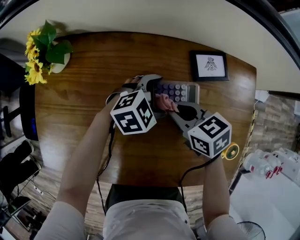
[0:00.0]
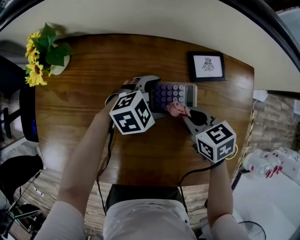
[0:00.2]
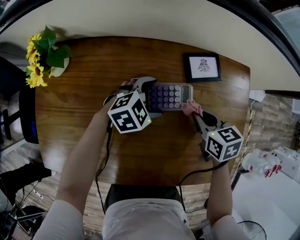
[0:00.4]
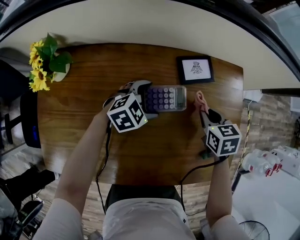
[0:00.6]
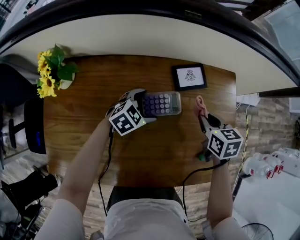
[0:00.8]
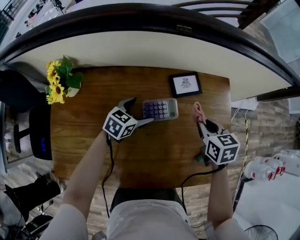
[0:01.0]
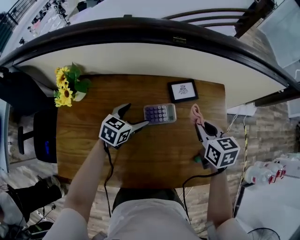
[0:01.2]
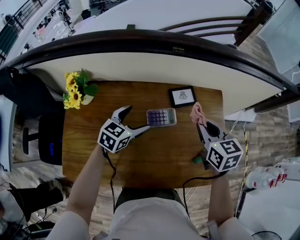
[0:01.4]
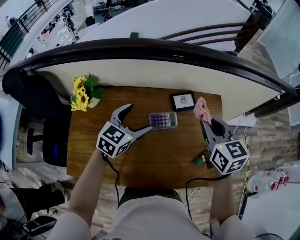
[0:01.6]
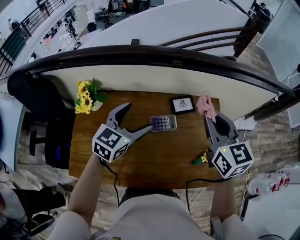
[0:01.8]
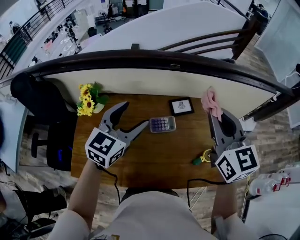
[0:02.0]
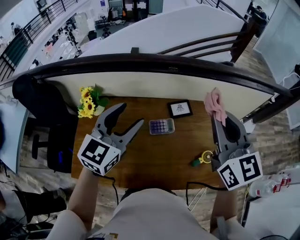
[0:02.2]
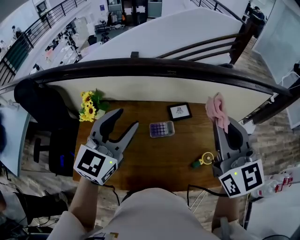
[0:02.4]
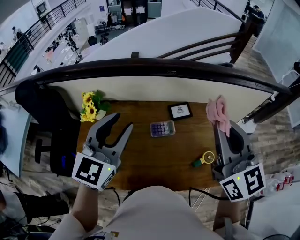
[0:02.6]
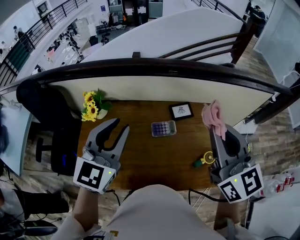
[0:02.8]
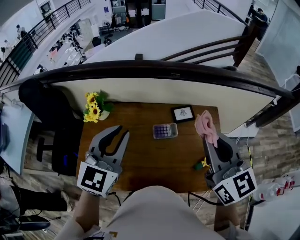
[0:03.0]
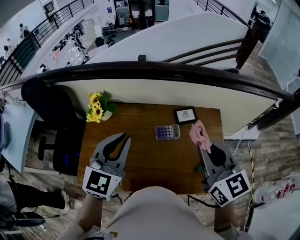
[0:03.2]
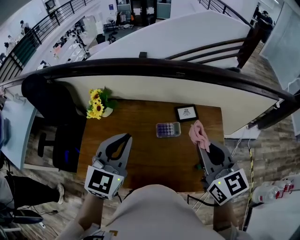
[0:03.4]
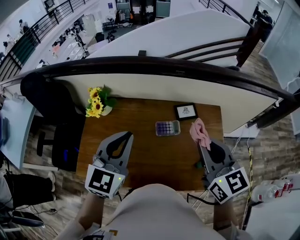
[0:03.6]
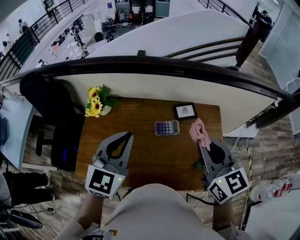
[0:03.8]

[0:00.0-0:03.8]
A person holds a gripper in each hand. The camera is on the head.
0:00.0 to 0:01.2: The right gripper shifts roughly 15 cm upward, and changes its angle by some 30 degrees, while the left gripper is displaced upward by about 10 cm, and changes its angle by some 40 degrees.
0:01.2 to 0:02.6: Both grippers travel together upward, about 40 cm. The left gripper tilts its fingers some 30 degrees upward, and closes its fingers; the right gripper tips its fingers upward by some 40 degrees.
0:02.6 to 0:03.8: The right gripper is displaced downward by approximately 10 cm. The left gripper moves about 5 cm.

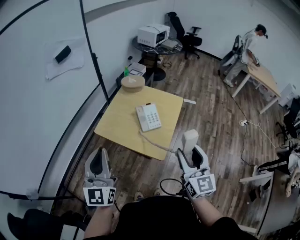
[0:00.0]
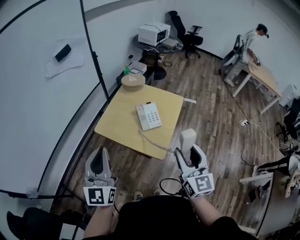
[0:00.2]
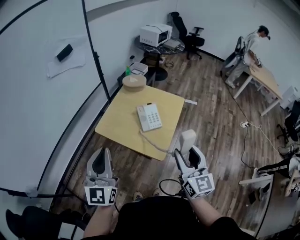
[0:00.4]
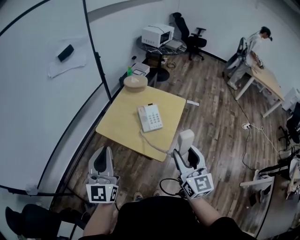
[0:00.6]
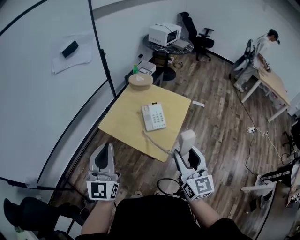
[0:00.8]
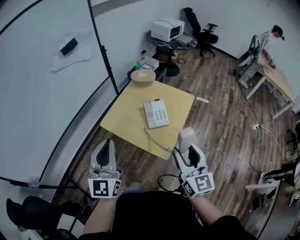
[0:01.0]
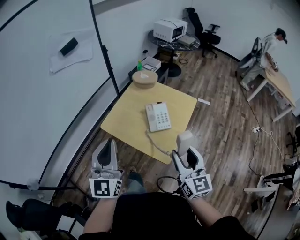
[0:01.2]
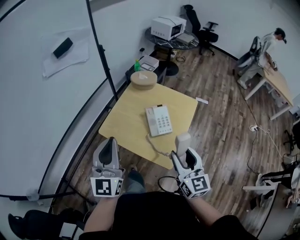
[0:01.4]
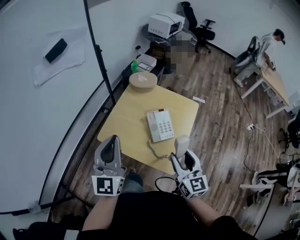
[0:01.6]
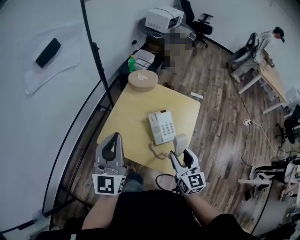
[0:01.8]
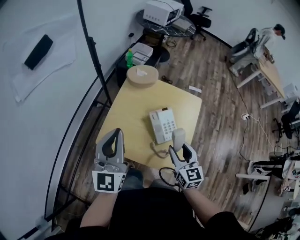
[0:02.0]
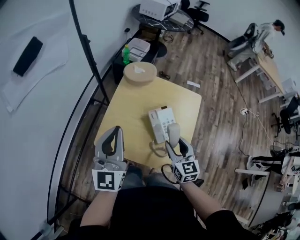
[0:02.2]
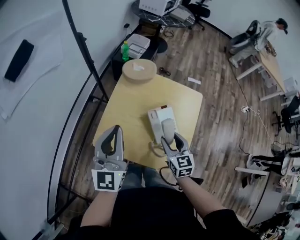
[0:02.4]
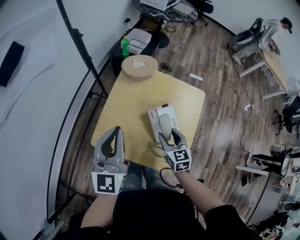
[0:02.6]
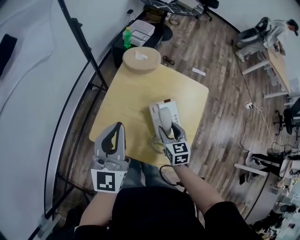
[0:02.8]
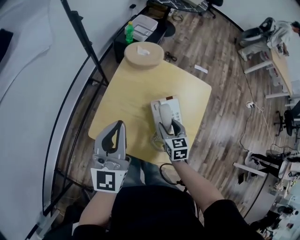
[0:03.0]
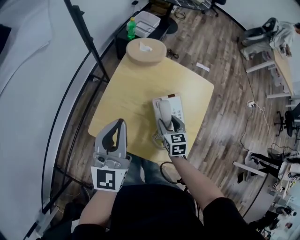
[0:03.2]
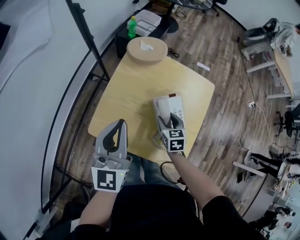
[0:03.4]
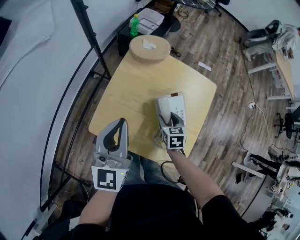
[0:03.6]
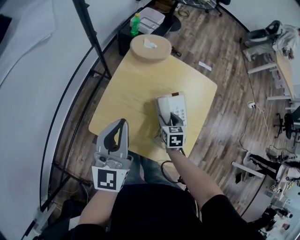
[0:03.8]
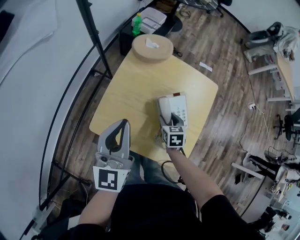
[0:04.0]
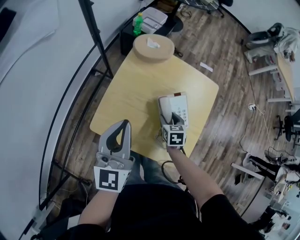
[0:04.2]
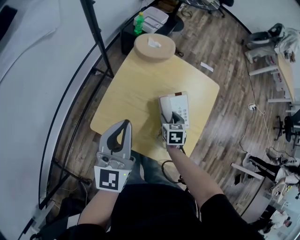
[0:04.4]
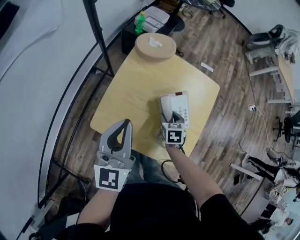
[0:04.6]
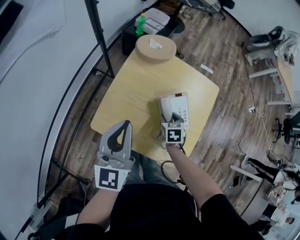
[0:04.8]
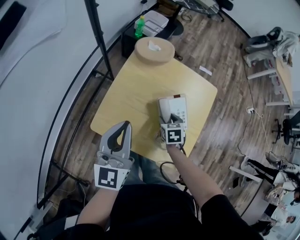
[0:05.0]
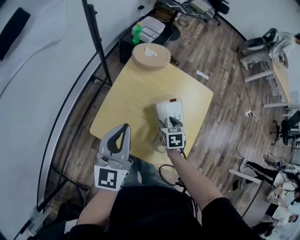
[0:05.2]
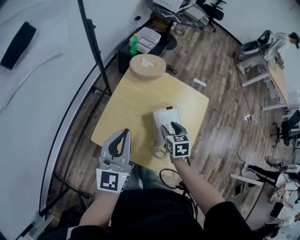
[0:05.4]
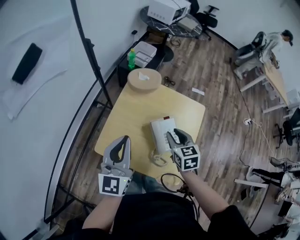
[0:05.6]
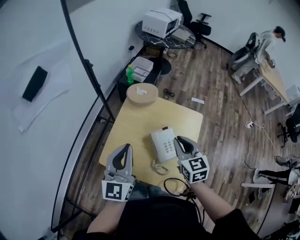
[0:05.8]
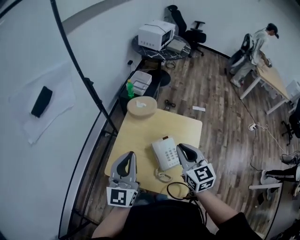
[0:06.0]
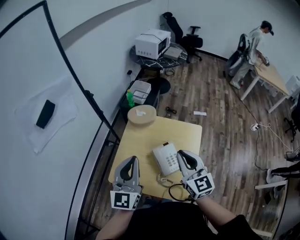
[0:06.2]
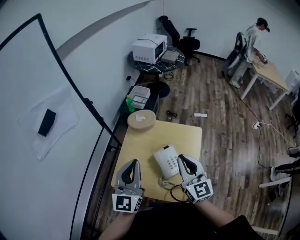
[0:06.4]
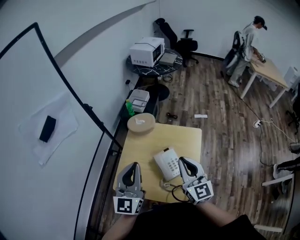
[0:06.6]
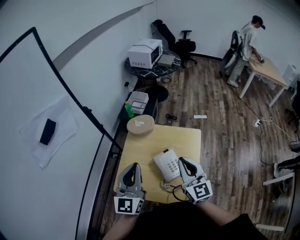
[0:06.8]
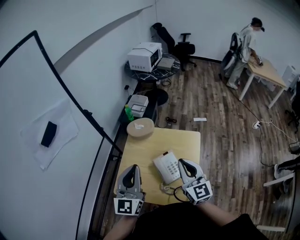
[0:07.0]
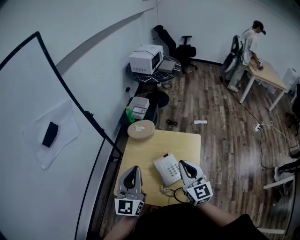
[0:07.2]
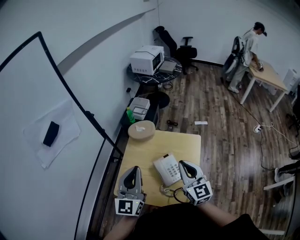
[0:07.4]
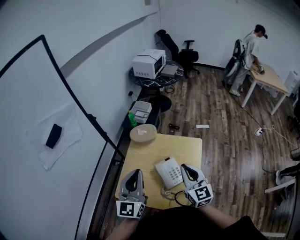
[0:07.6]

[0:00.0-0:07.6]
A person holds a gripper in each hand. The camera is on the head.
0:00.0 to 0:01.6: The right gripper is displaced forward and downward by roughly 20 cm. Meanwhile the left gripper travels forward by approximately 20 cm.
0:01.6 to 0:03.0: The left gripper is displaced forward and downward by approximately 20 cm; the right gripper heads downward and forward, covering some 30 cm, and tips its fingers downward by about 30 degrees.
0:03.0 to 0:04.6: The right gripper heads downward, covering approximately 5 cm.
0:04.6 to 0:06.0: The left gripper travels upward by about 15 cm; the right gripper travels upward by roughly 35 cm, tilts its fingers approximately 40 degrees upward, and closes up.
0:06.0 to 0:07.6: The right gripper ends up about 5 cm from where it was. Meanwhile the left gripper moves some 5 cm.

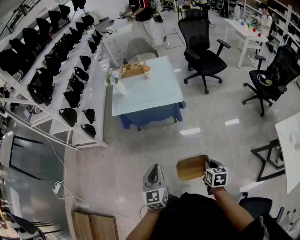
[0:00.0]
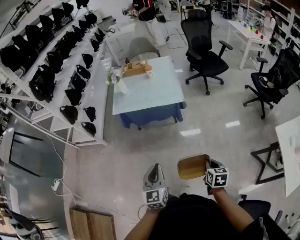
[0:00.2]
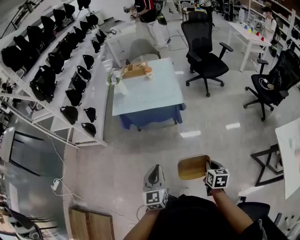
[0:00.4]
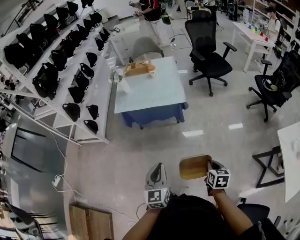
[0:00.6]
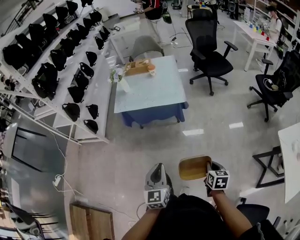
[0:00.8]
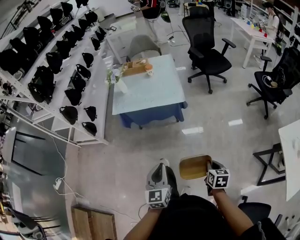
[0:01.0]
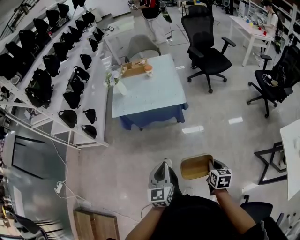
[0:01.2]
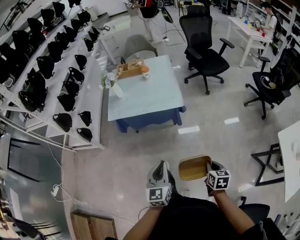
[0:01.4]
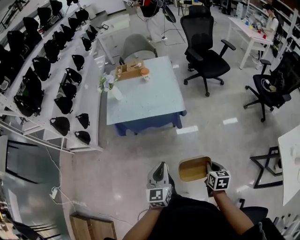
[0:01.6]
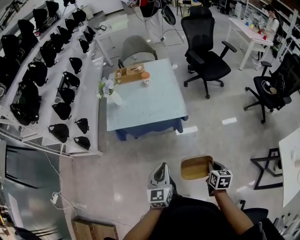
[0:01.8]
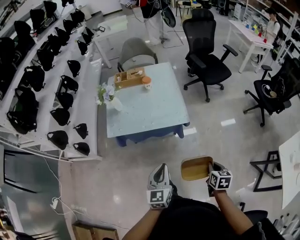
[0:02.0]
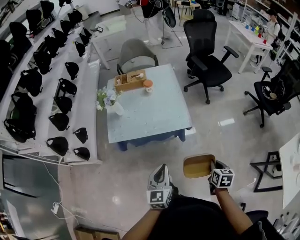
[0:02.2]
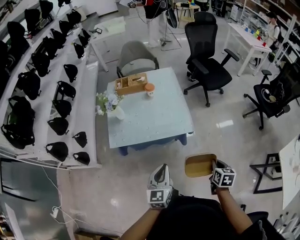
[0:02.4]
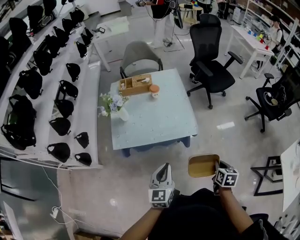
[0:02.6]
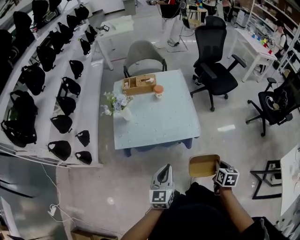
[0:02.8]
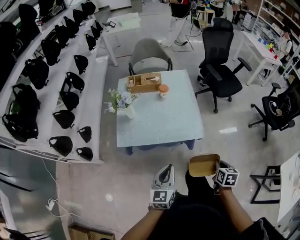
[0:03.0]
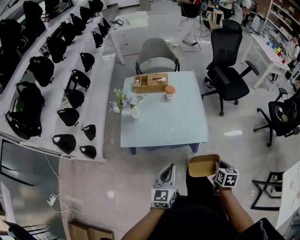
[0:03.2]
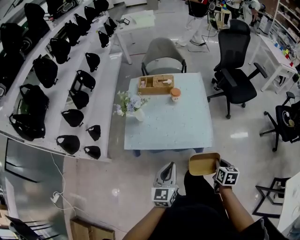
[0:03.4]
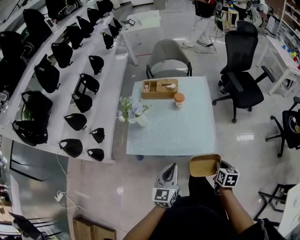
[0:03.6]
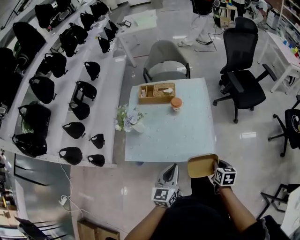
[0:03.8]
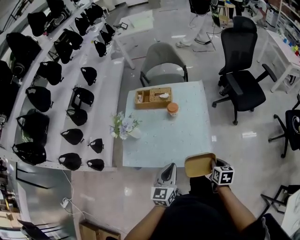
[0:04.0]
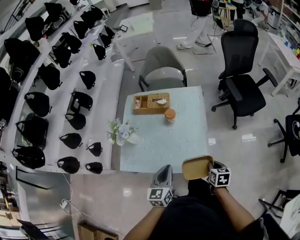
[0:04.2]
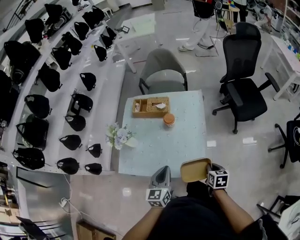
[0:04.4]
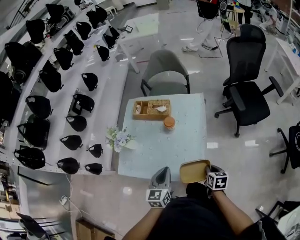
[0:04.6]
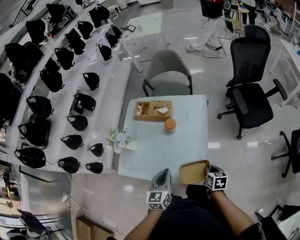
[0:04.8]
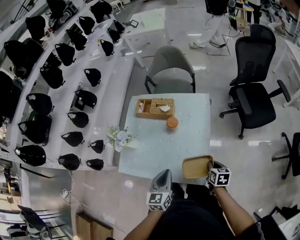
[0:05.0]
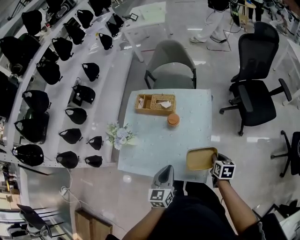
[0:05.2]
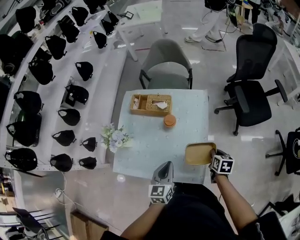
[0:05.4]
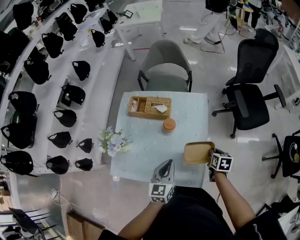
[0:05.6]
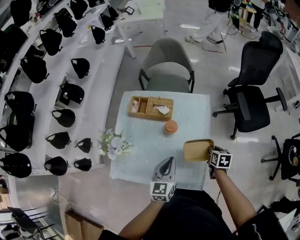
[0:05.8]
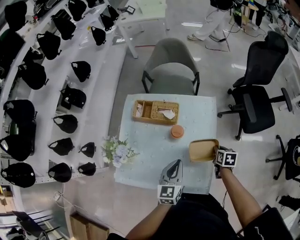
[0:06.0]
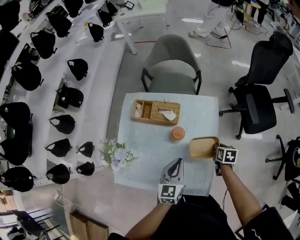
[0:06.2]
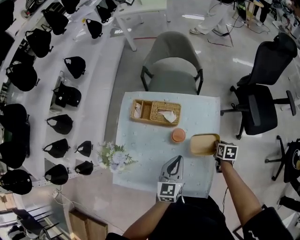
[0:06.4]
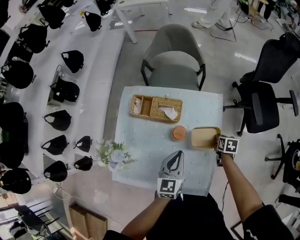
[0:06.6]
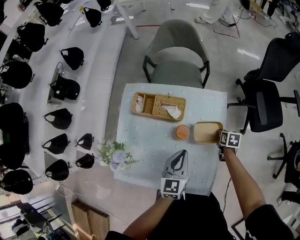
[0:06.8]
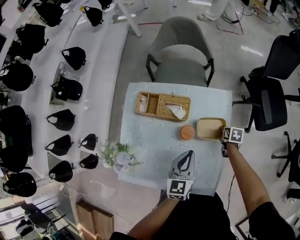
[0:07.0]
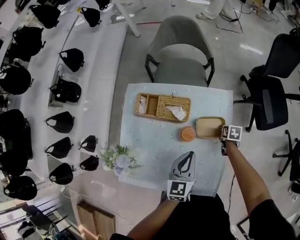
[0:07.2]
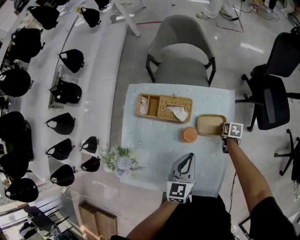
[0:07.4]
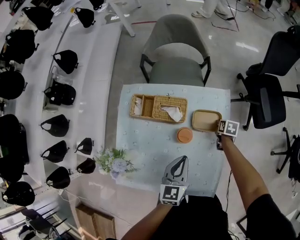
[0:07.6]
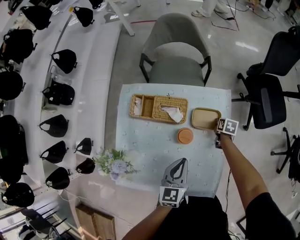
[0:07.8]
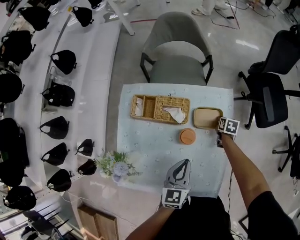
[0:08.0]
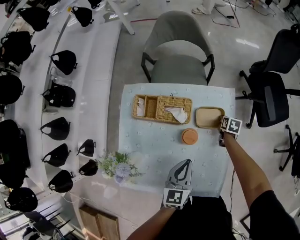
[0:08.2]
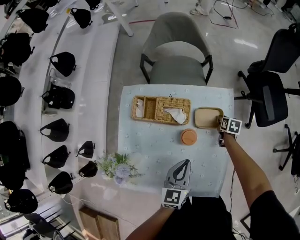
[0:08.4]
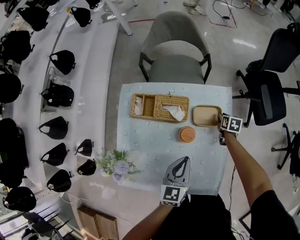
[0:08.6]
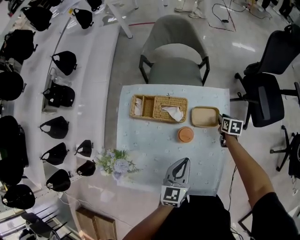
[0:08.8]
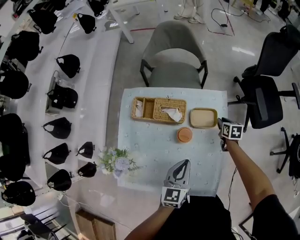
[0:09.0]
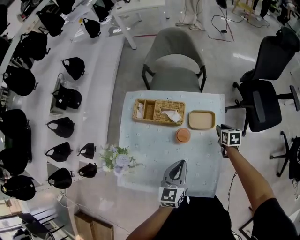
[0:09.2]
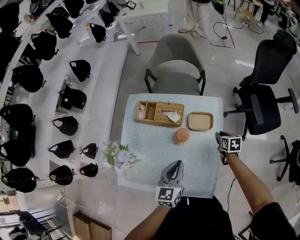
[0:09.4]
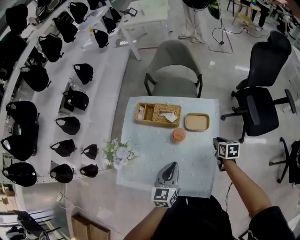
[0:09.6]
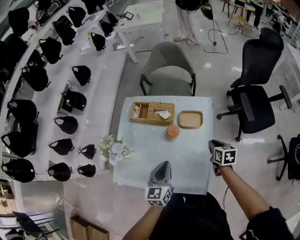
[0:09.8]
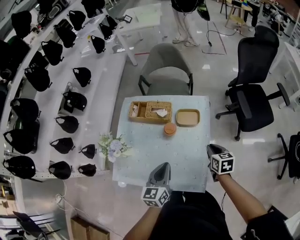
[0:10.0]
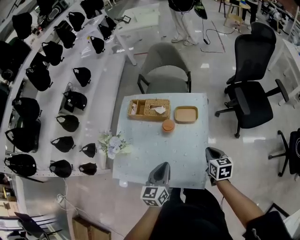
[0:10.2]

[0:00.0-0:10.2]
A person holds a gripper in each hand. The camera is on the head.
0:00.0 to 0:01.4: The two grippers go roughly 10 cm forward.
0:01.4 to 0:03.0: Both grippers travel together forward and to the left, roughly 30 cm.
0:03.0 to 0:04.4: Both grippers move forward, approximately 30 cm.
0:04.4 to 0:05.8: Both grippers travel together forward, roughly 20 cm.
0:05.8 to 0:07.2: The left gripper heads forward and downward, covering about 15 cm, while the right gripper heads forward and downward, covering roughly 25 cm.
0:07.2 to 0:08.8: The right gripper goes roughly 5 cm forward, and opens.
0:08.8 to 0:10.2: The right gripper moves backward and upward, some 35 cm, rotates roughly 20 degrees, and closes up. The left gripper goes some 20 cm backward and upward.

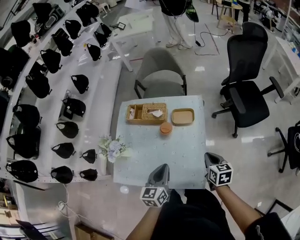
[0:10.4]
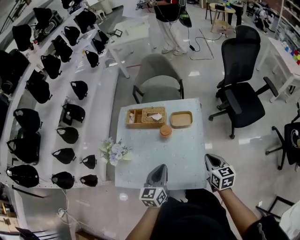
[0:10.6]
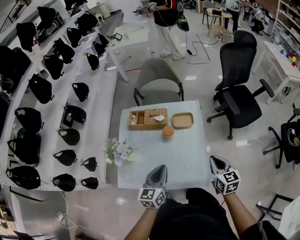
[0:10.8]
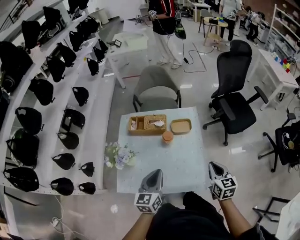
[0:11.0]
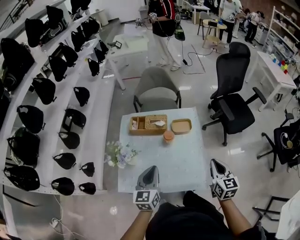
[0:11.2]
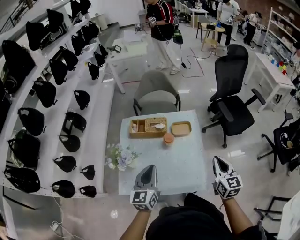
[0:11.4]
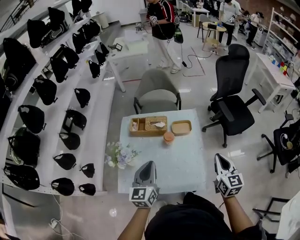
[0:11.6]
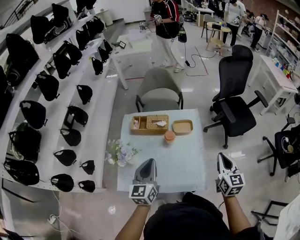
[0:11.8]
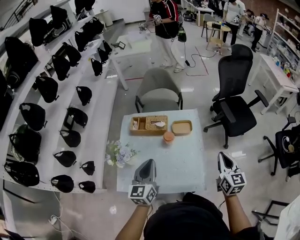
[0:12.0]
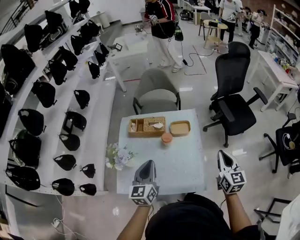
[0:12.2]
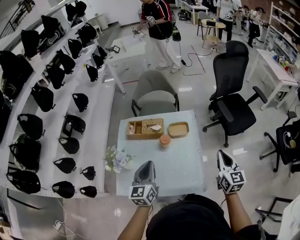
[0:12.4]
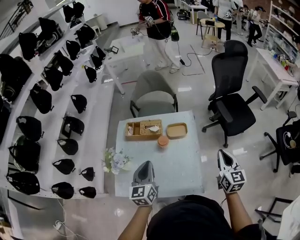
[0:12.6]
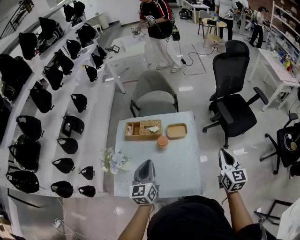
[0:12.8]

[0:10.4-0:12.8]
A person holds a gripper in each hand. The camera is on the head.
0:10.4 to 0:11.6: The right gripper goes about 20 cm upward, and rotates roughly 30 degrees, while the left gripper shifts approximately 20 cm to the left and upward.
0:11.6 to 0:12.8: Both grippers move to the right and forward, roughly 10 cm.
